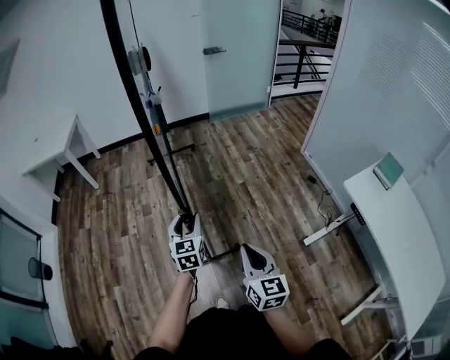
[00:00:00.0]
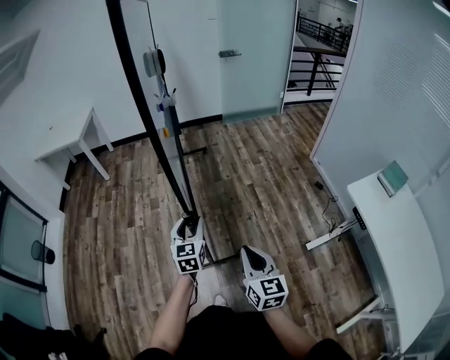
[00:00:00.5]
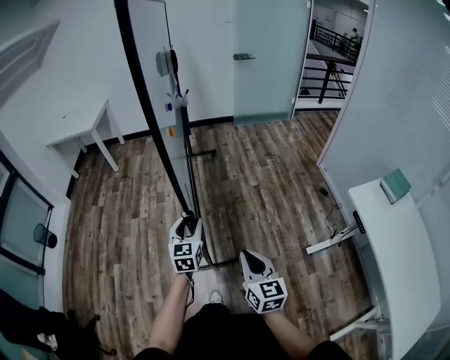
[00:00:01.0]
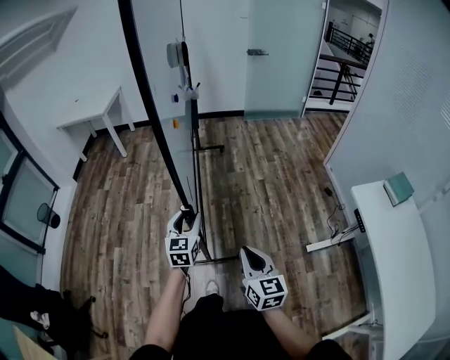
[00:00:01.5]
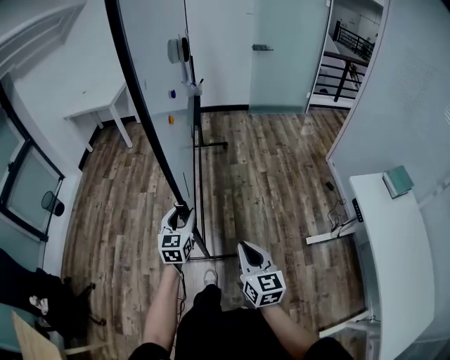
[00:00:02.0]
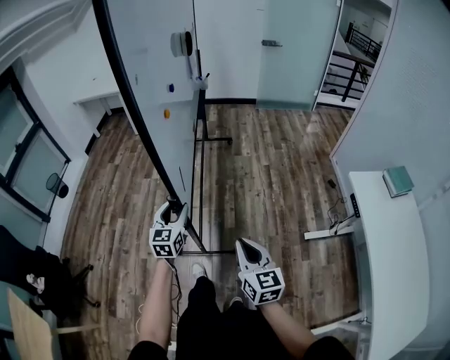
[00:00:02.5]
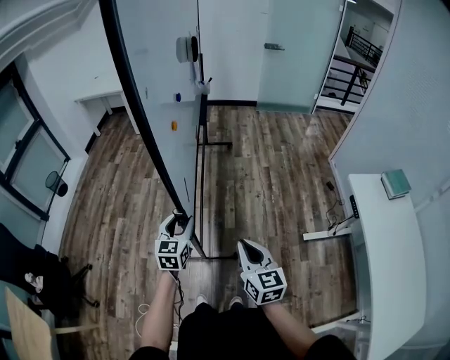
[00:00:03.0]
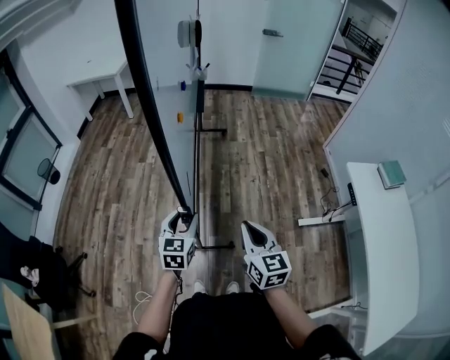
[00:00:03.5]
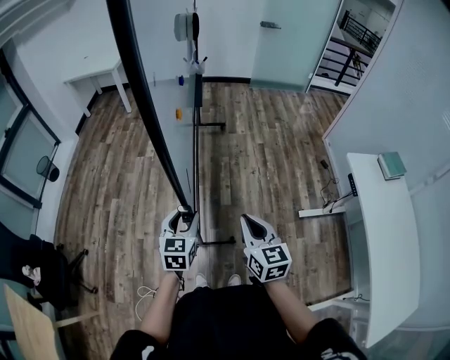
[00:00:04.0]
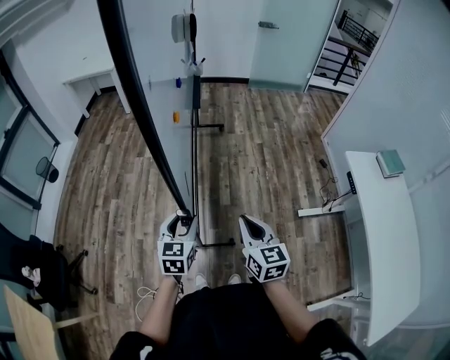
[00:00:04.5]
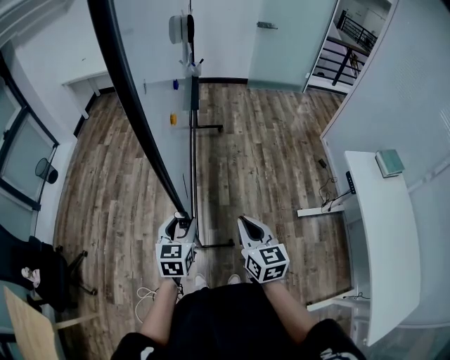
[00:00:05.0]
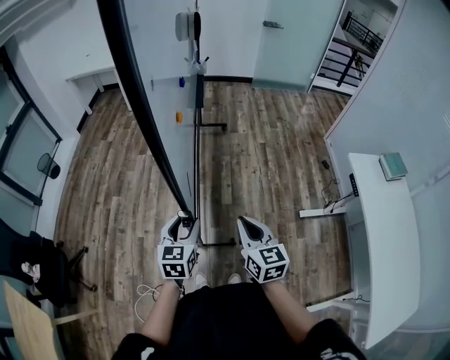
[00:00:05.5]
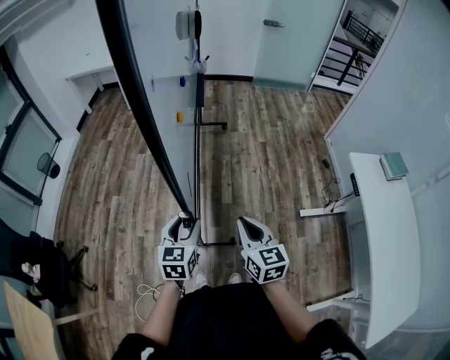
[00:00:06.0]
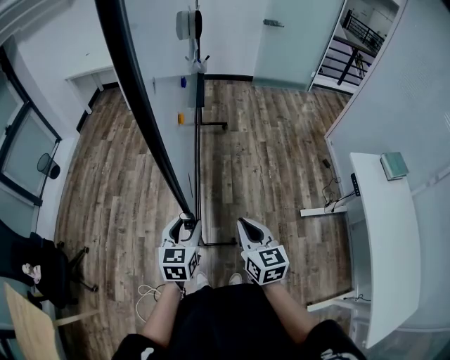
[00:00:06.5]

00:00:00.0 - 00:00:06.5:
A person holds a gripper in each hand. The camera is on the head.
00:00:00.0 - 00:00:02.0: Both grippers travel together backward, approximately 25 cm.
00:00:02.0 - 00:00:04.5: The right gripper goes approximately 10 cm backward, while the left gripper heads backward, covering some 20 cm.
00:00:04.5 - 00:00:06.5: There are only small adjustments of the grippers.

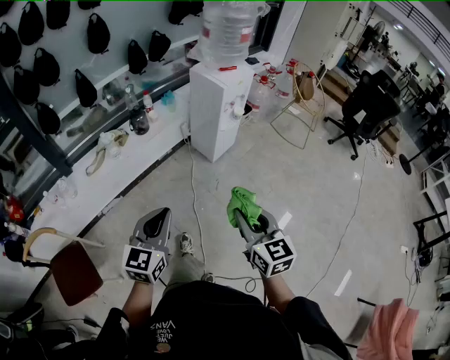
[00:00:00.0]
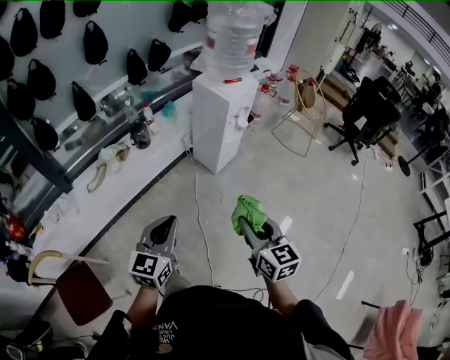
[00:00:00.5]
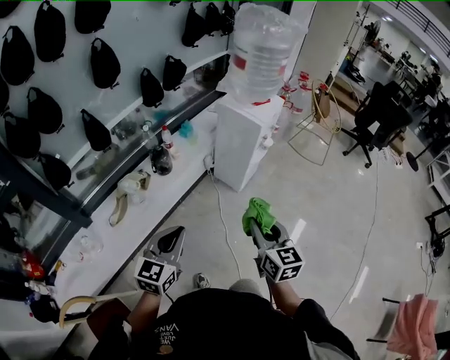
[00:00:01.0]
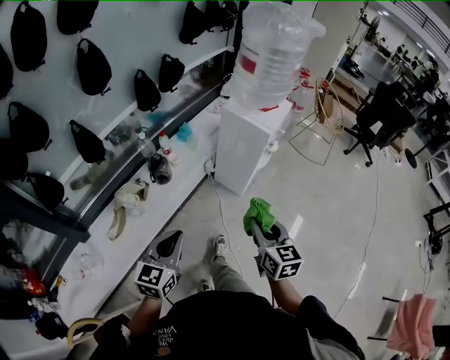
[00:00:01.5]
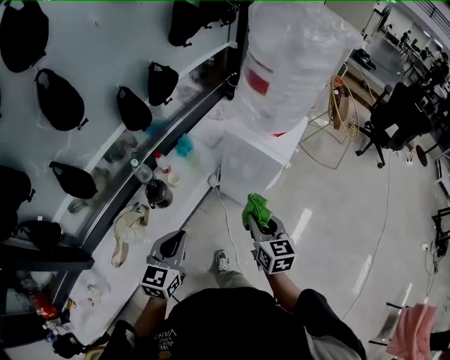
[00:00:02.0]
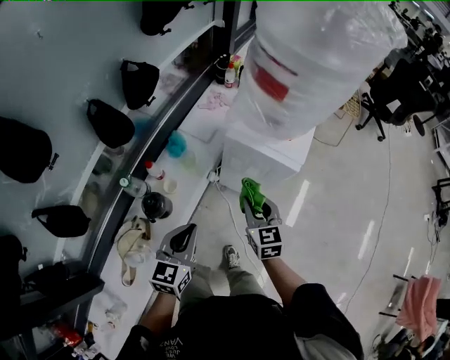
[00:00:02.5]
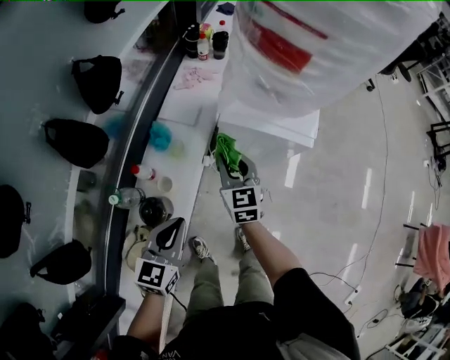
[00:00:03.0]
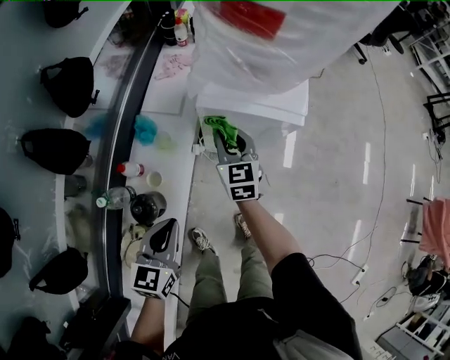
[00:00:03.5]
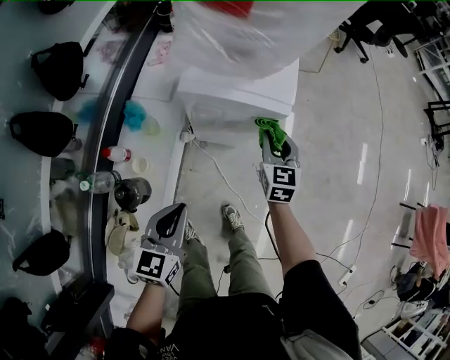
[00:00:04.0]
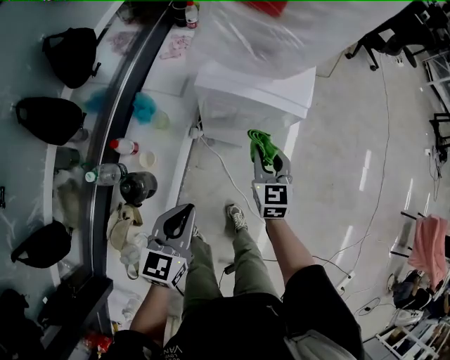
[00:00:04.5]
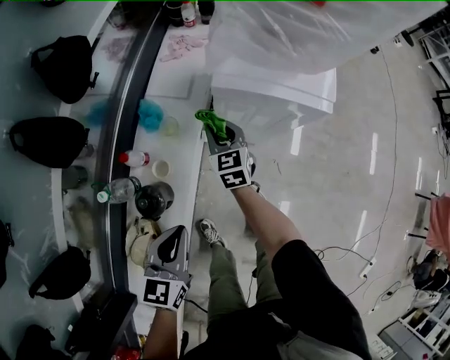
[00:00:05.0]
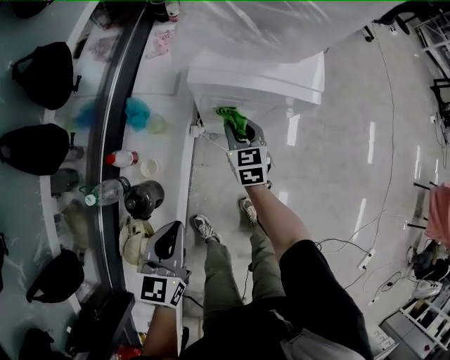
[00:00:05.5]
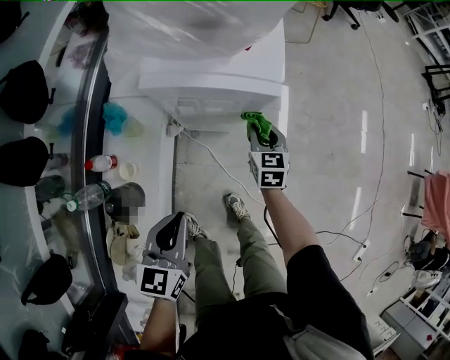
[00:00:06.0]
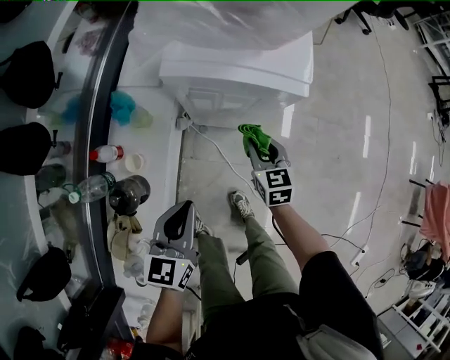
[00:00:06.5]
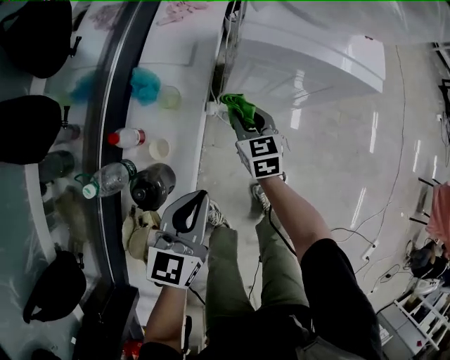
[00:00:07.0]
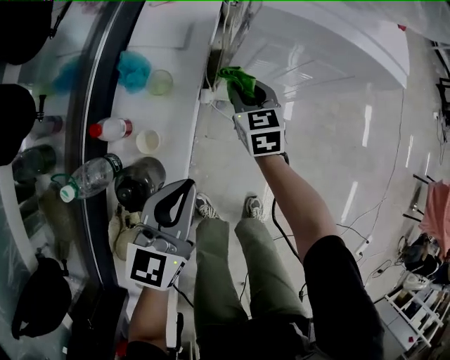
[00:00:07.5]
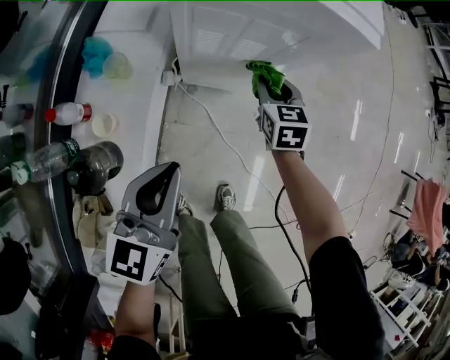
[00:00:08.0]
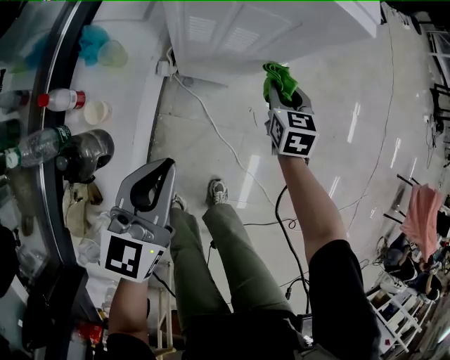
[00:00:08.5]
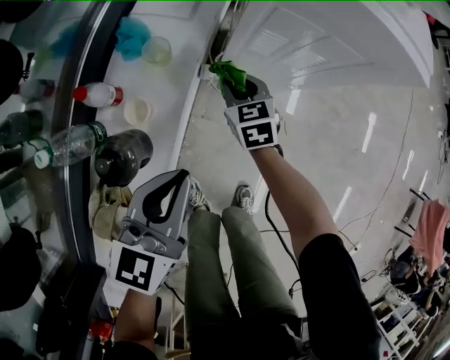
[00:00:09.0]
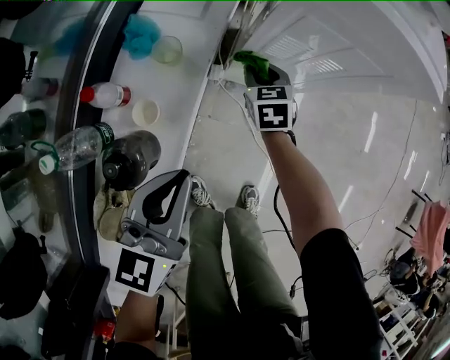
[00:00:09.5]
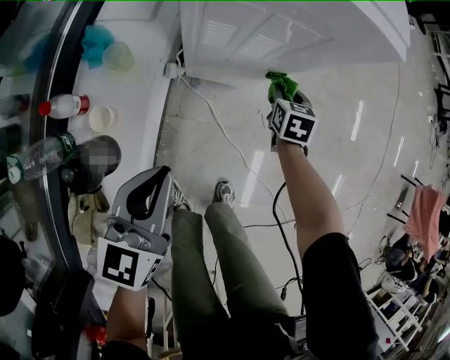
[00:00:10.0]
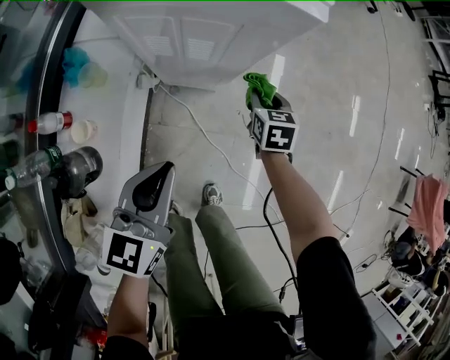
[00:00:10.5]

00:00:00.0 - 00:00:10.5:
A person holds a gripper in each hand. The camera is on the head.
00:00:00.0 - 00:00:02.0: The two grippers travel together, forward and to the left, about 50 cm. The right gripper swivels approximately 20 degrees.
00:00:02.0 - 00:00:04.0: The left gripper moves roughly 20 cm, and rotates some 30 degrees. The right gripper changes place by approximately 25 cm, and swivels approximately 40 degrees.
00:00:04.0 - 00:00:06.5: The right gripper swings left and right, approximately 25 cm each way, with 2 reversals. The left gripper goes about 5 cm downward, and moves some 10 cm to the left and comes back.
00:00:06.5 - 00:00:08.5: The two grippers go about 5 cm downward. The left gripper moves some 10 cm to the left and comes back, while the right gripper moves roughly 20 cm to the left and comes back.
00:00:08.5 - 00:00:10.5: The right gripper reaches about 25 cm to the left, then returns. Meanwhile the left gripper travels to the left and back again, roughly 10 cm each way.

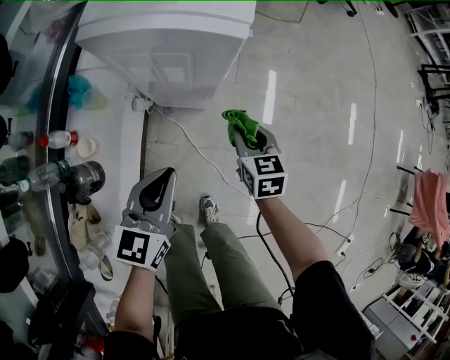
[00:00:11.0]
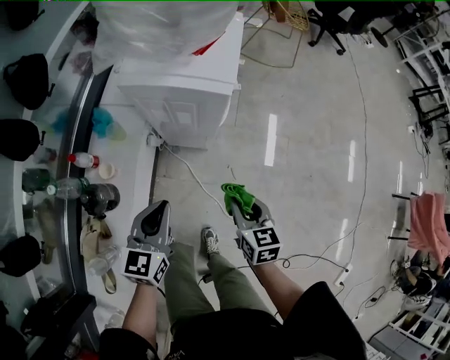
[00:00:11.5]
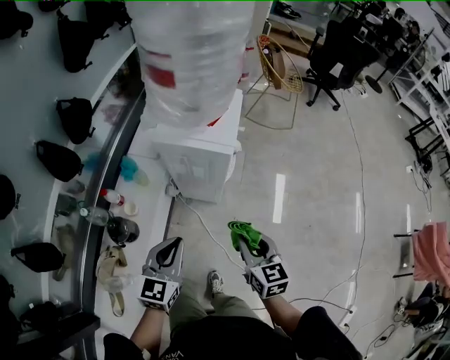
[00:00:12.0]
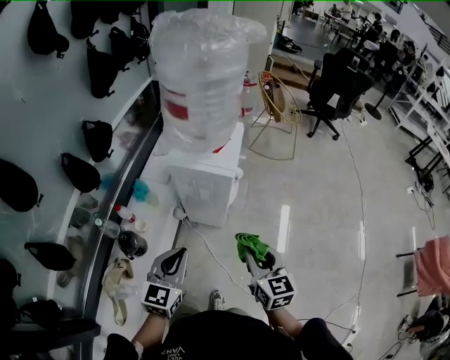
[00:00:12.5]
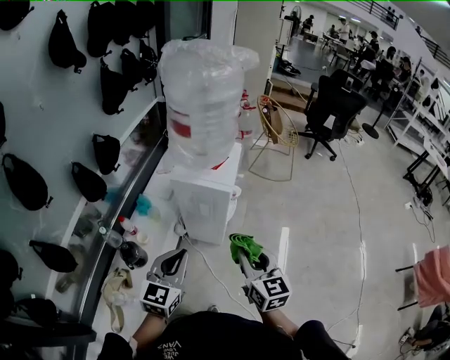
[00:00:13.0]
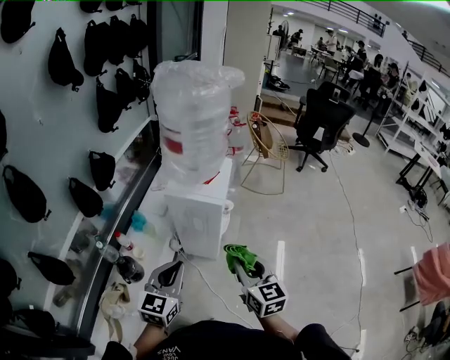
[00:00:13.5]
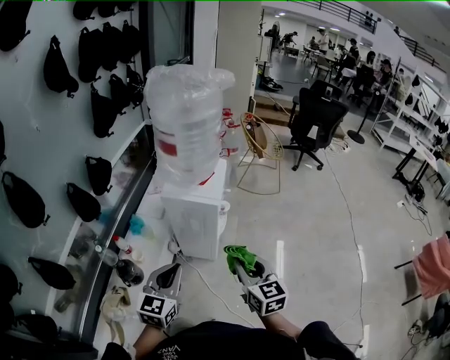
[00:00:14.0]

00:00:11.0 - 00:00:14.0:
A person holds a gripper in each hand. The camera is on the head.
00:00:11.0 - 00:00:12.5: The right gripper shifts some 35 cm upward and backward, and turns by some 20 degrees; the left gripper is displaced upward and backward by approximately 25 cm.
00:00:12.5 - 00:00:14.0: The right gripper heads upward, covering about 5 cm.

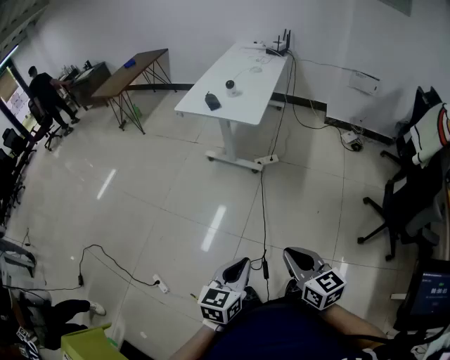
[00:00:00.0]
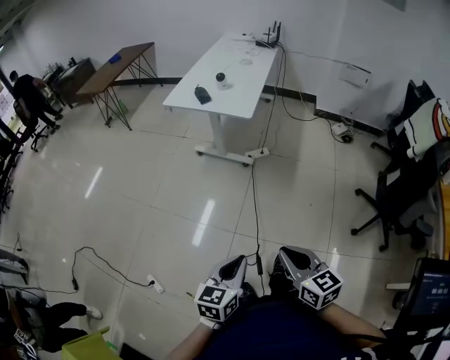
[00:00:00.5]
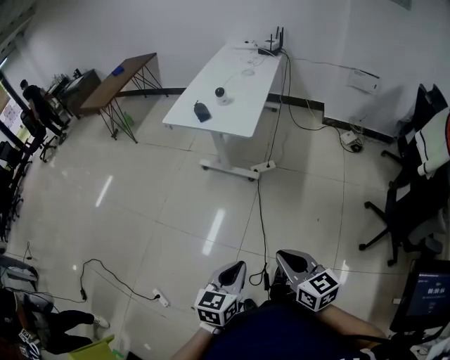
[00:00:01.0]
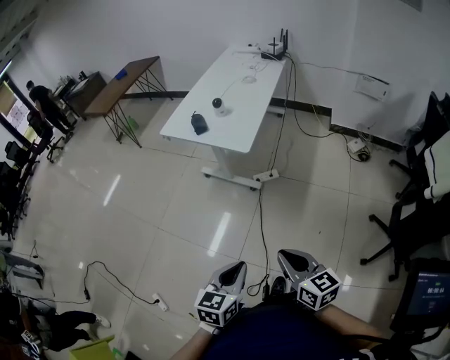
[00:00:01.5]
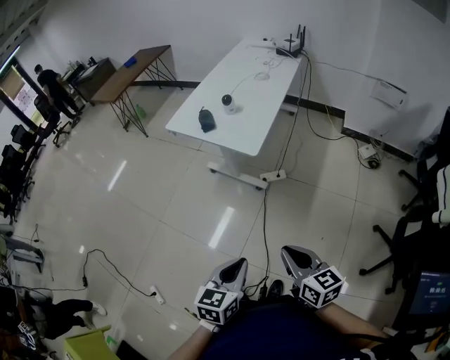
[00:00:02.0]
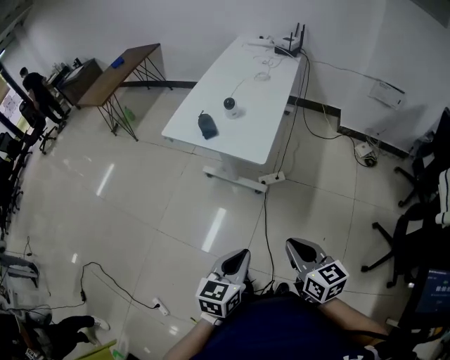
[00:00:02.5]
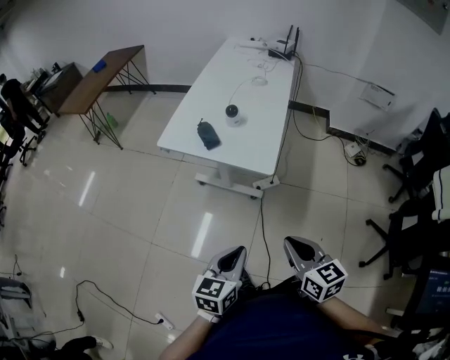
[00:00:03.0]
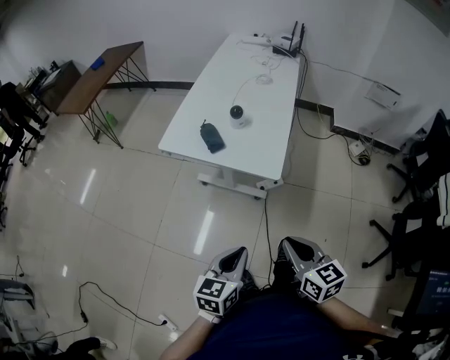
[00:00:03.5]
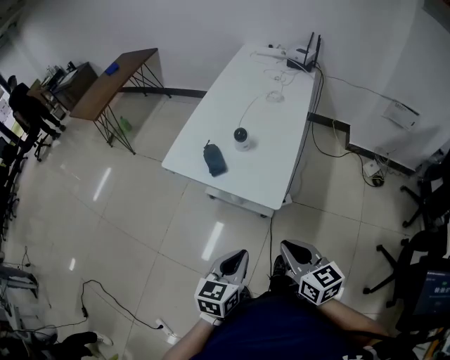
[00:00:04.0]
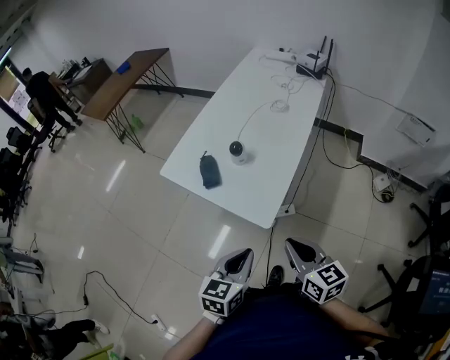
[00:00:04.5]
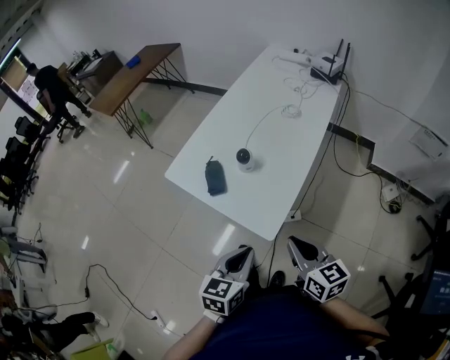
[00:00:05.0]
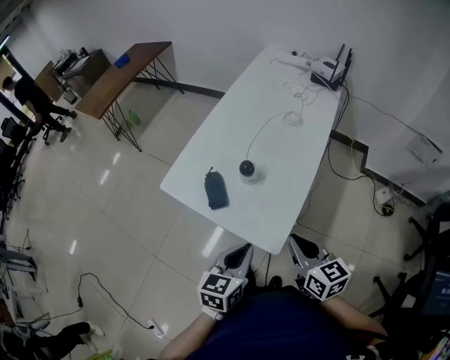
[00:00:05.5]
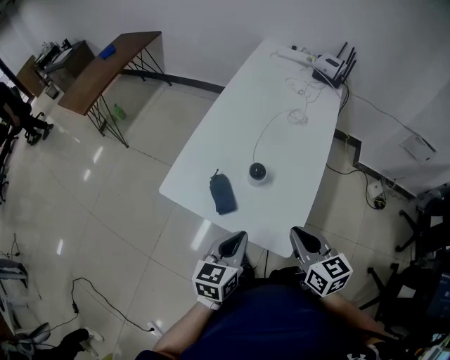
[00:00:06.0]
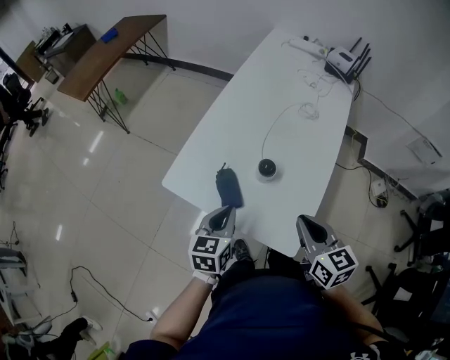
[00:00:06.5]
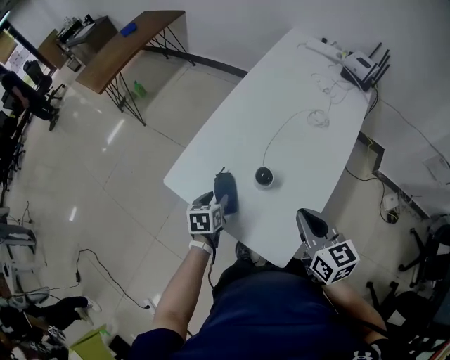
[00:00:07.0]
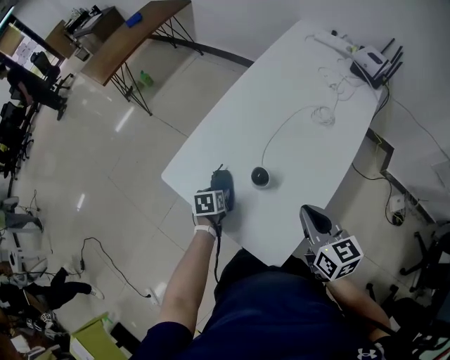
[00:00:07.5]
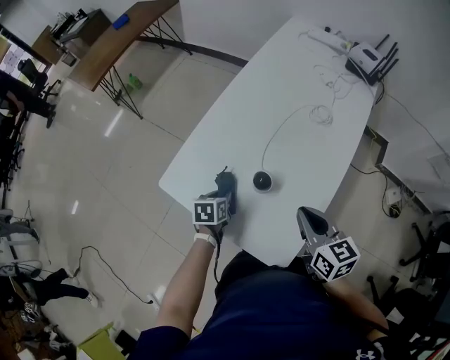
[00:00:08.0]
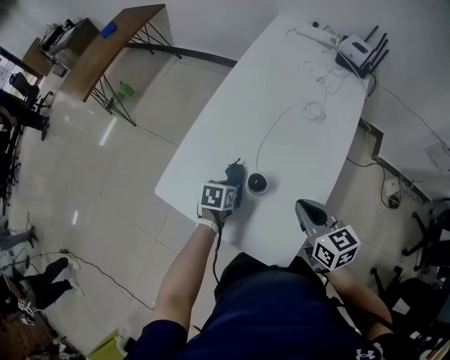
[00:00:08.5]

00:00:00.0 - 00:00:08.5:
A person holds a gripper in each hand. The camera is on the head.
00:00:00.0 - 00:00:02.0: The grippers both shift forward by some 25 cm.
00:00:02.0 - 00:00:04.0: The grippers both shift forward and to the left by some 30 cm.
00:00:04.0 - 00:00:06.5: The two grippers go approximately 30 cm forward.
00:00:06.5 - 00:00:08.5: The left gripper heads downward and forward, covering some 20 cm, changes its angle by roughly 30 degrees, and opens, then closes again. Meanwhile the right gripper moves forward, approximately 10 cm.
